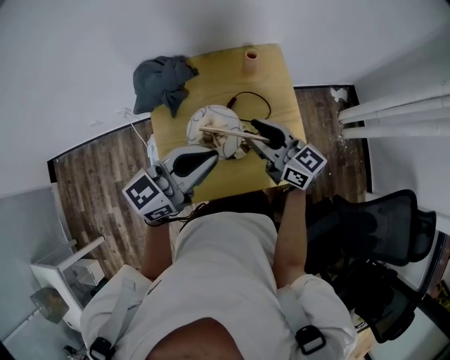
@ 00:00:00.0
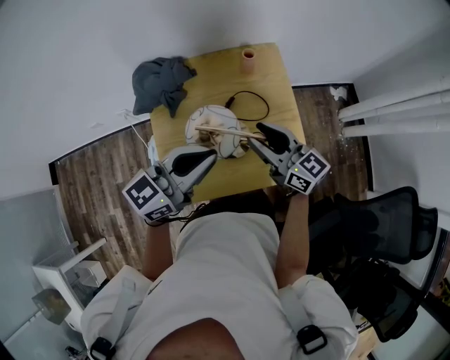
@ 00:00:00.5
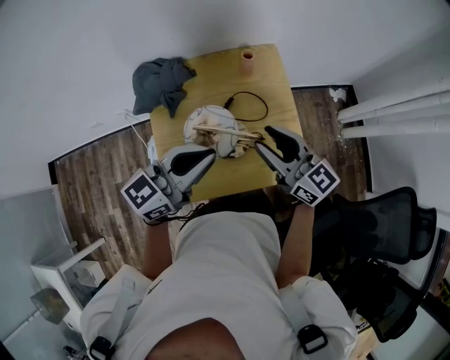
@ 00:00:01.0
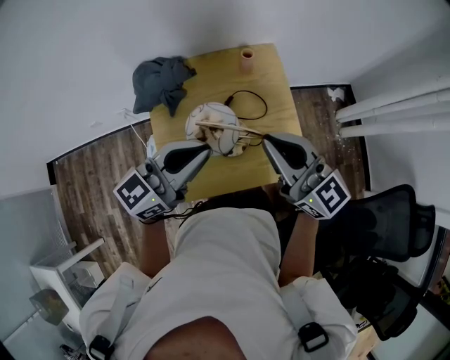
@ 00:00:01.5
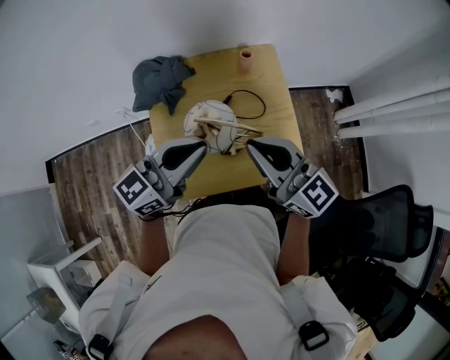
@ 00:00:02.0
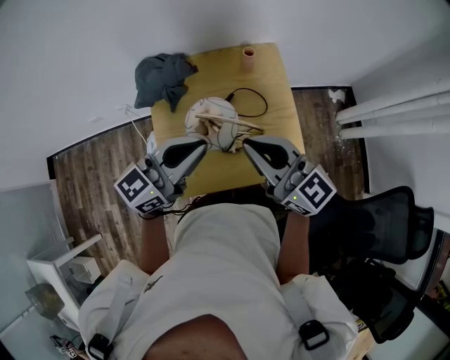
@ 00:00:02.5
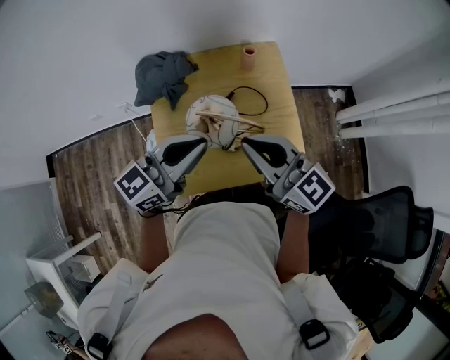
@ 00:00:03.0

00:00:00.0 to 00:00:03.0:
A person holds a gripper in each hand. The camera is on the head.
00:00:00.0 to 00:00:01.5: The right gripper goes approximately 15 cm upward and backward, turns by approximately 20 degrees, and closes.
00:00:01.5 to 00:00:03.0: The grippers stay close to where they were, moving slightly.

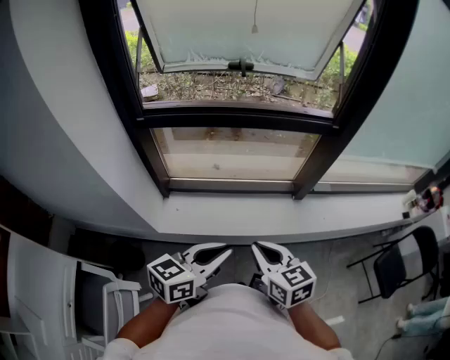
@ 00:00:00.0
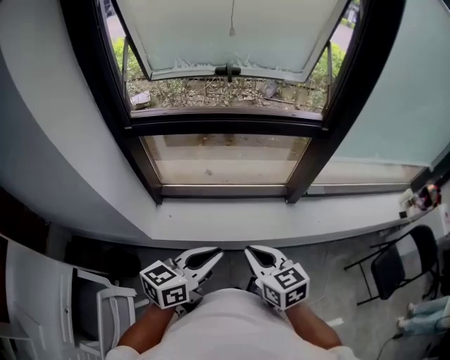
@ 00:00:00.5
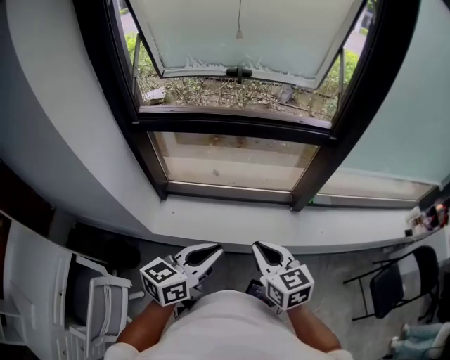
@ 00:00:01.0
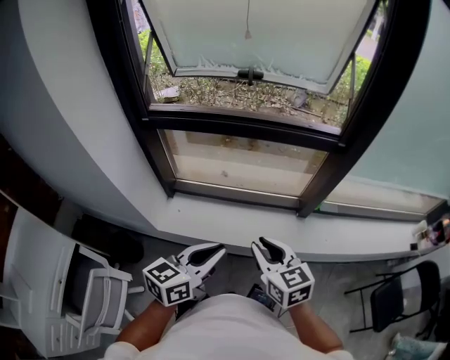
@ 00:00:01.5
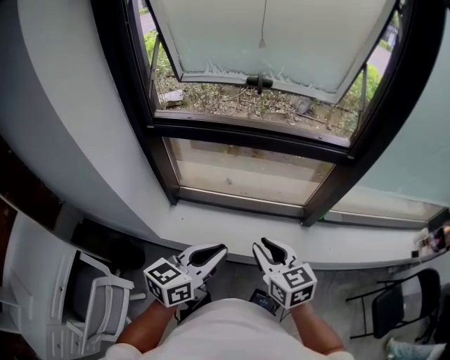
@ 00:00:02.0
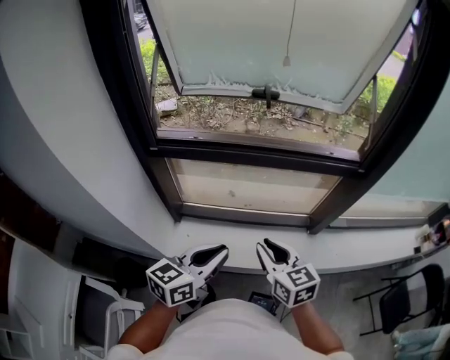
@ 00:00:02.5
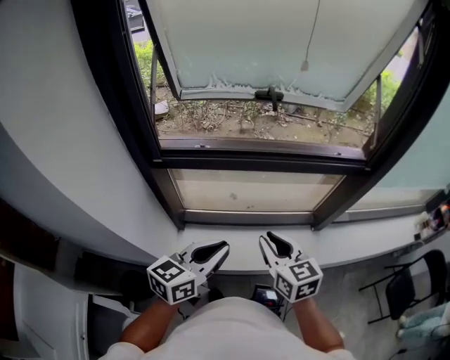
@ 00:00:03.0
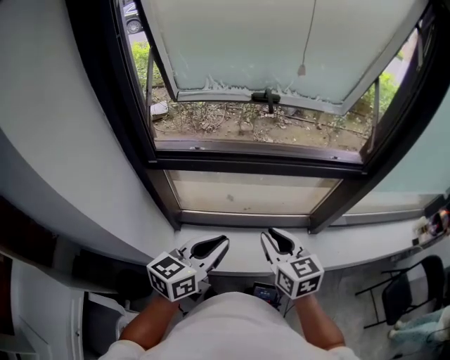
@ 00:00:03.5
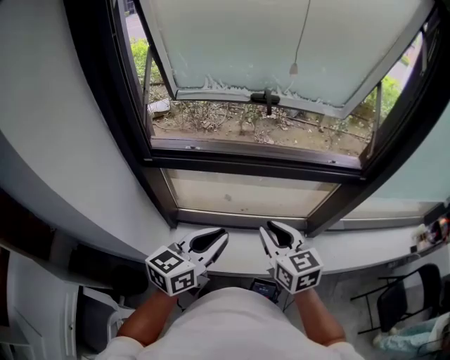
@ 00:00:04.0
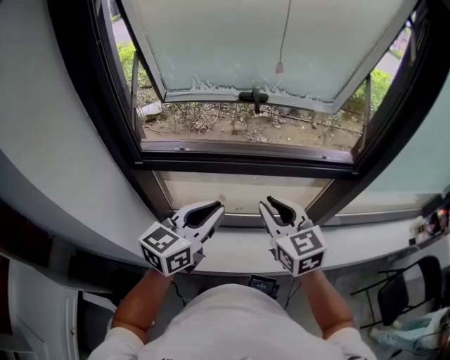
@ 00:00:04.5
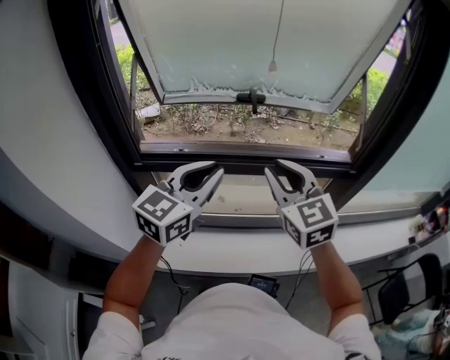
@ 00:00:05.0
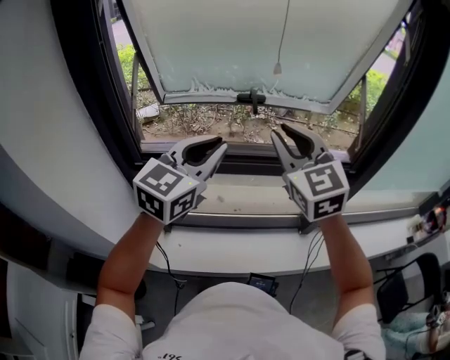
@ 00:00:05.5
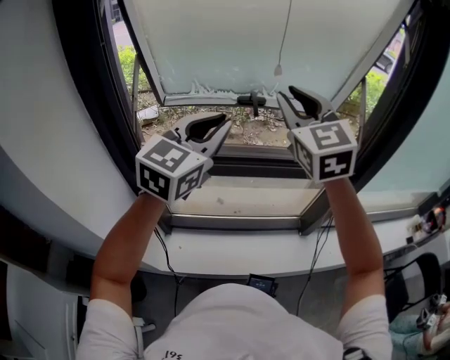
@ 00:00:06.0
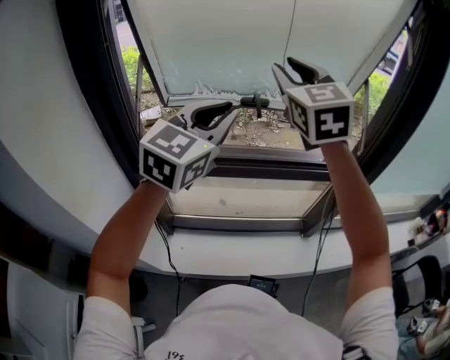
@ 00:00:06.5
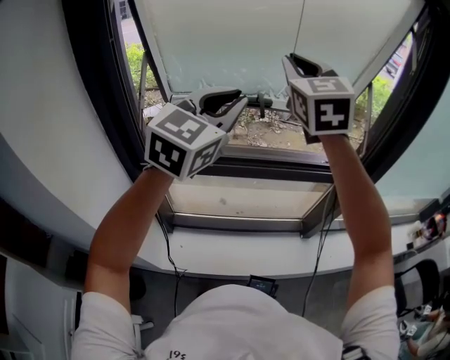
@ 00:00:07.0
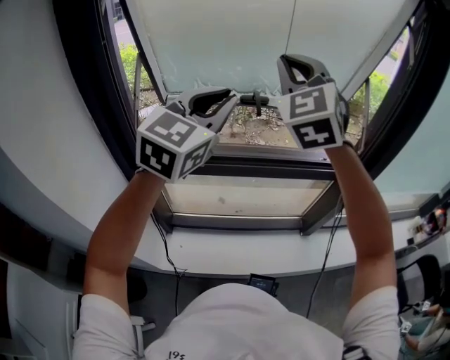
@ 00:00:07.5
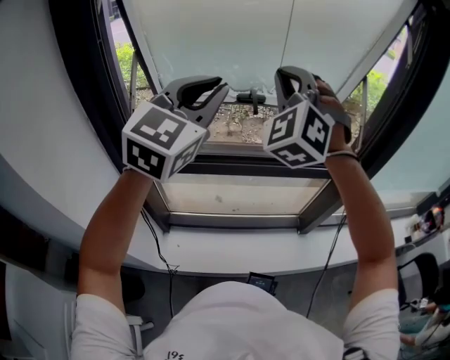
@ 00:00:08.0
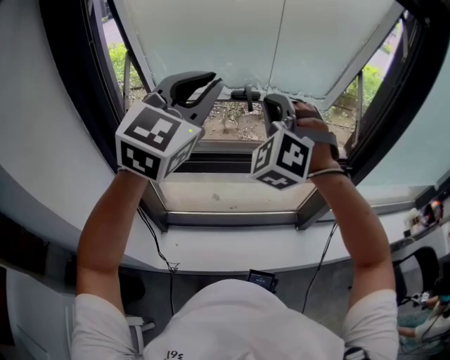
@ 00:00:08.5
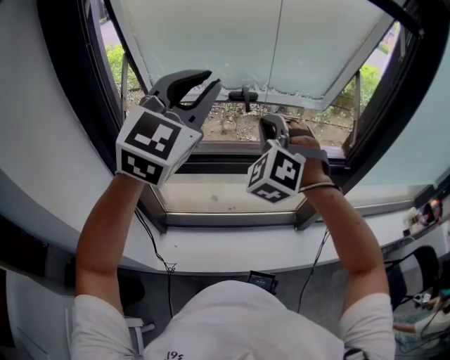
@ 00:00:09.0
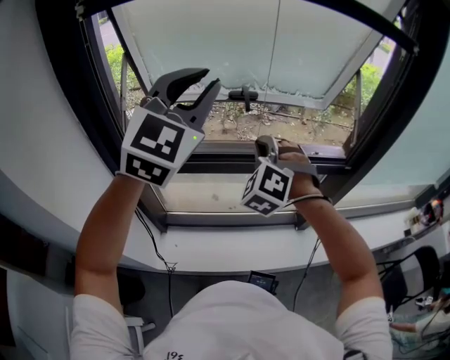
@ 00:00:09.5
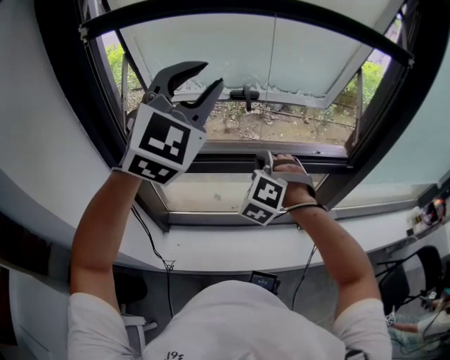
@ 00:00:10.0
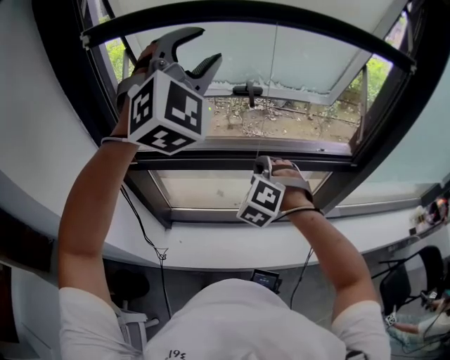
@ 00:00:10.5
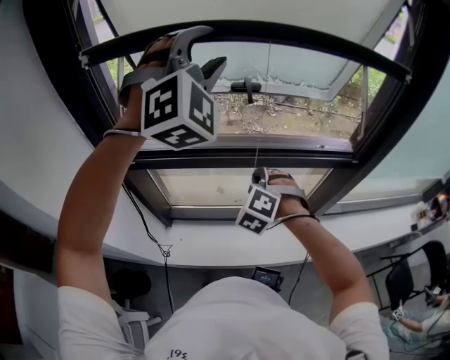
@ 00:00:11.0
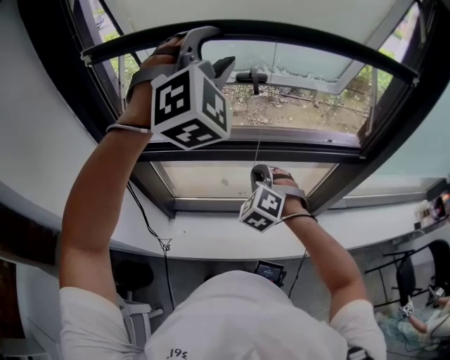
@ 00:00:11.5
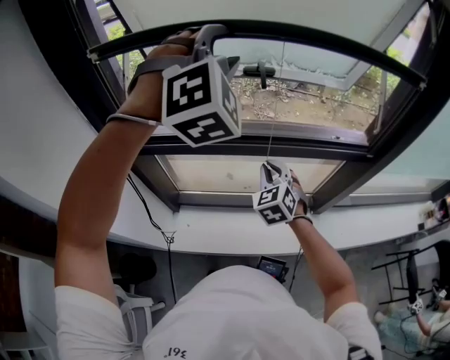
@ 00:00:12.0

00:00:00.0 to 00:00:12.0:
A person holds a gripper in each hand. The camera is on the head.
00:00:00.0 to 00:00:02.0: Both grippers move forward, some 10 cm.
00:00:02.0 to 00:00:04.0: The grippers both shift forward and to the left by about 15 cm.
00:00:04.0 to 00:00:06.0: Both grippers travel together upward and forward, about 30 cm. The right gripper rotates some 40 degrees. The left gripper turns by some 40 degrees.
00:00:06.0 to 00:00:08.0: The left gripper is displaced upward by some 5 cm. The right gripper twists approximately 40 degrees counterclockwise, seen from behind.
00:00:08.0 to 00:00:10.0: The left gripper rotates approximately 20 degrees. The right gripper moves downward, about 25 cm, and angles its fingers downward, by about 30 degrees.
00:00:10.0 to 00:00:12.0: The left gripper shifts some 10 cm forward, and turns by about 40 degrees, while the right gripper is displaced downward by about 10 cm, and swivels approximately 40 degrees.

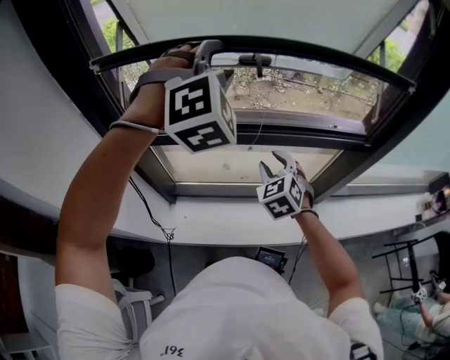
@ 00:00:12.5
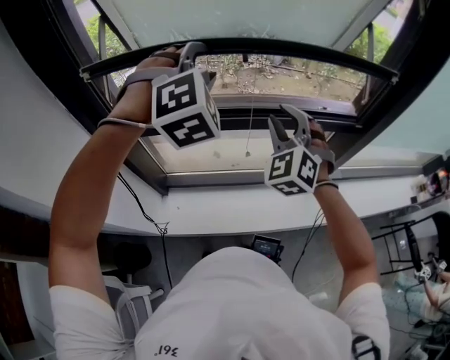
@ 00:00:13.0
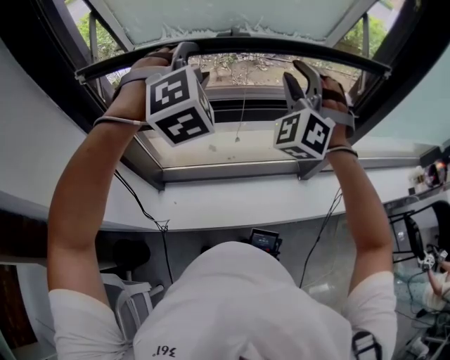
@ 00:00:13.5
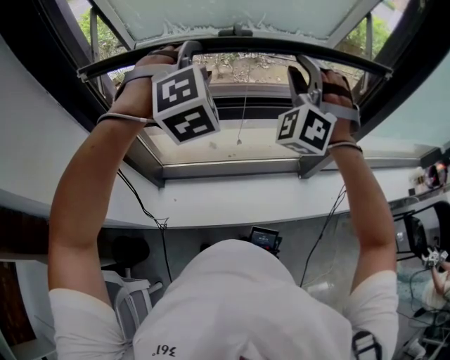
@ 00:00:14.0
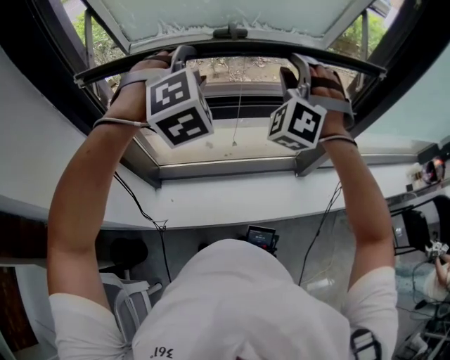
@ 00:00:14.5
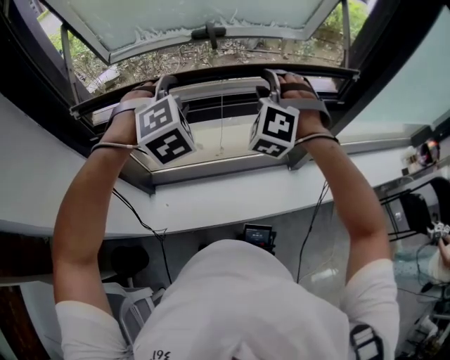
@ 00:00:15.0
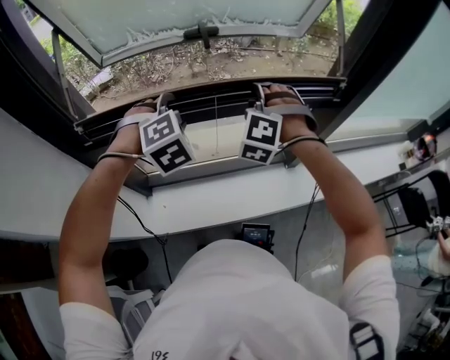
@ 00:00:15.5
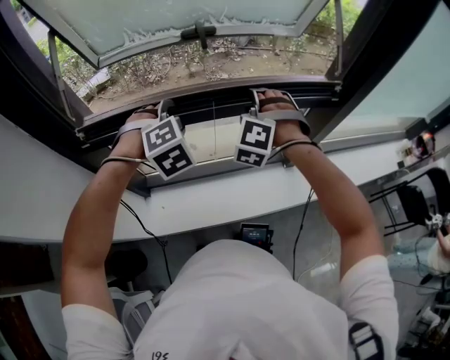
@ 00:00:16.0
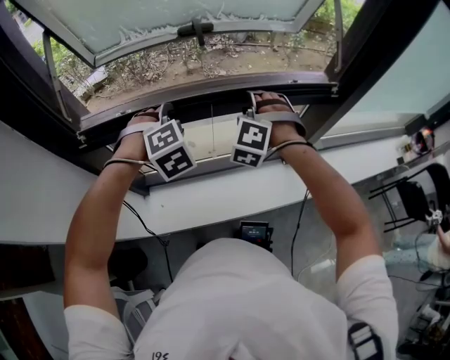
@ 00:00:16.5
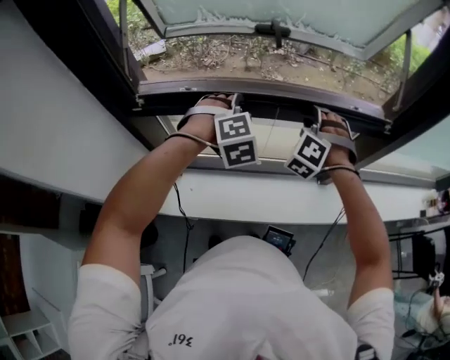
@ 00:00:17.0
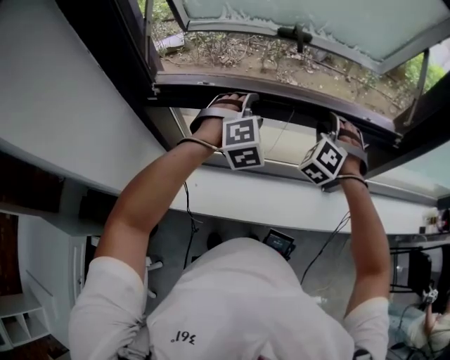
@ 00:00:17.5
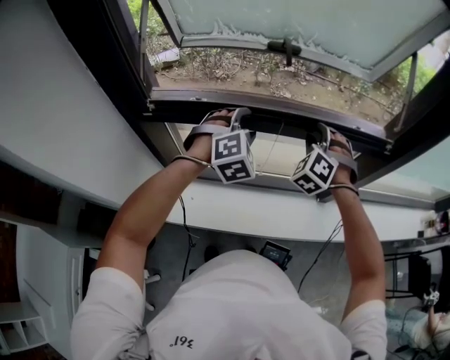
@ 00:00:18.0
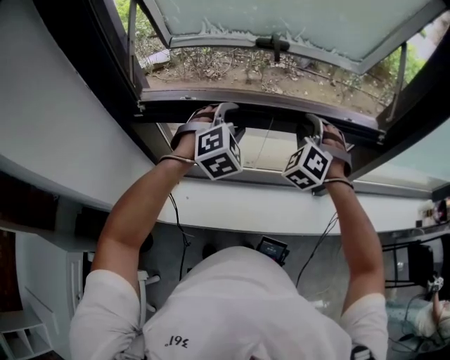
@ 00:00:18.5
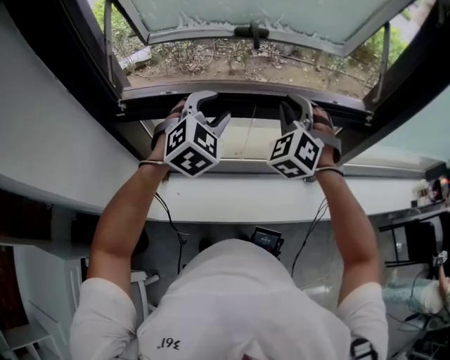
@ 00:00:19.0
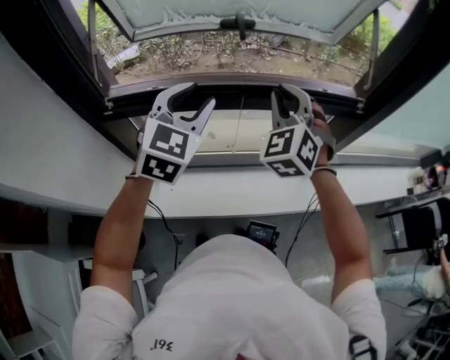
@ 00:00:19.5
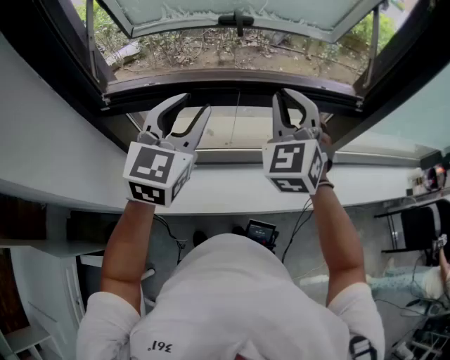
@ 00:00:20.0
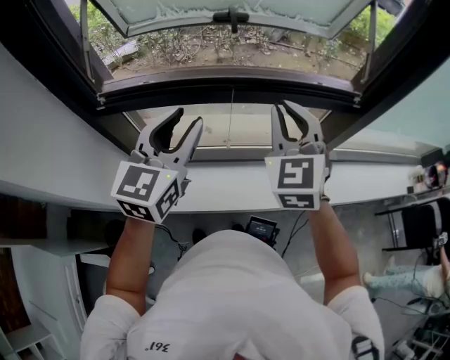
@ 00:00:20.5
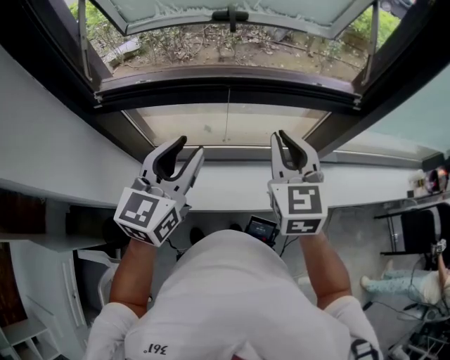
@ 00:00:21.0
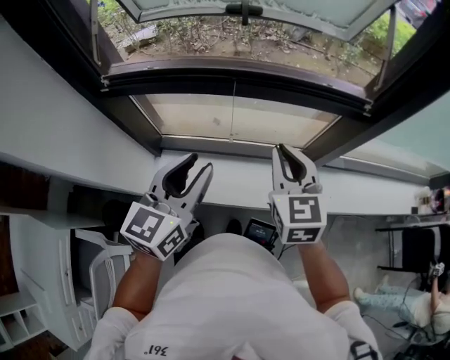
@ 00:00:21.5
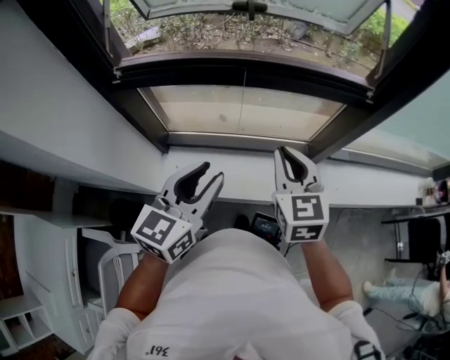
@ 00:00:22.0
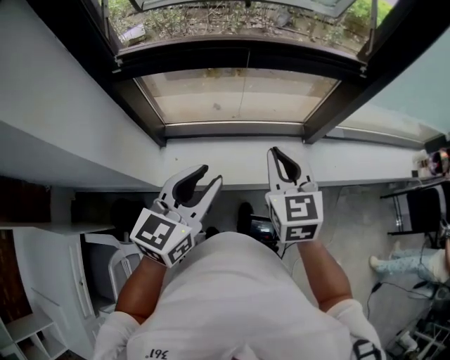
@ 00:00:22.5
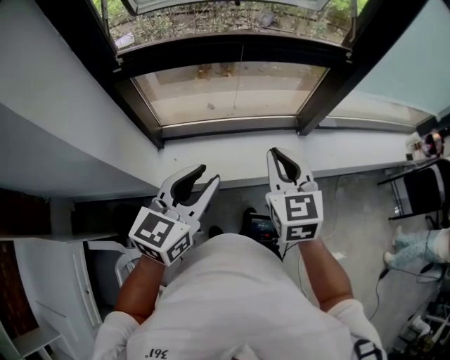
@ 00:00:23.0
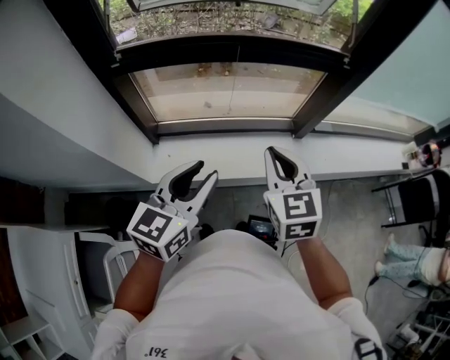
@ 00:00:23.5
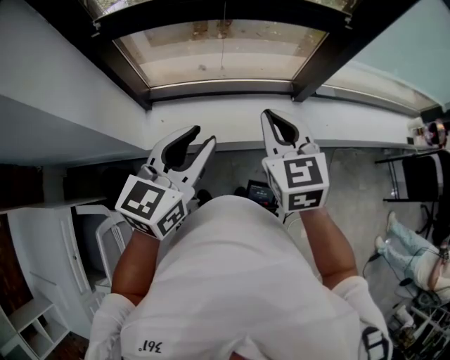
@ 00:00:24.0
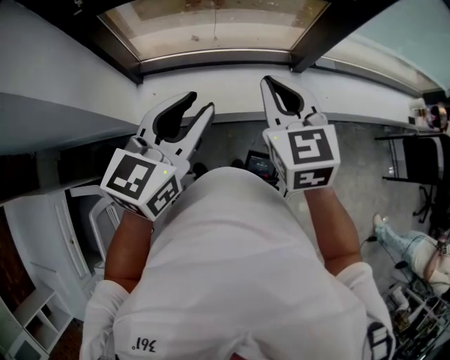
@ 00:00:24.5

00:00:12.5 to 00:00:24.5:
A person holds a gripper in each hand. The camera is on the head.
00:00:12.5 to 00:00:14.5: The right gripper goes approximately 20 cm upward, and swivels some 50 degrees, while the left gripper travels downward by approximately 10 cm.
00:00:14.5 to 00:00:16.5: Both grippers move downward, approximately 15 cm. The right gripper changes its angle by some 30 degrees.
00:00:16.5 to 00:00:18.5: The left gripper swivels approximately 20 degrees.
00:00:18.5 to 00:00:20.5: Both grippers travel together backward and upward, some 15 cm. The right gripper turns by approximately 40 degrees, and closes; the left gripper rotates around the line of its fingers by some 50 degrees, counterclockwise from behind.
00:00:20.5 to 00:00:22.5: Both grippers move backward and downward, roughly 20 cm. The right gripper swivels some 20 degrees.
00:00:22.5 to 00:00:24.5: The right gripper ends up some 5 cm from where it was, while the left gripper goes some 5 cm to the right.
